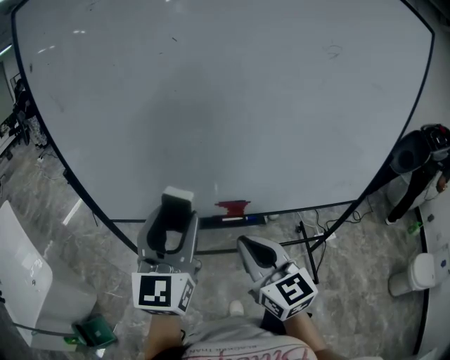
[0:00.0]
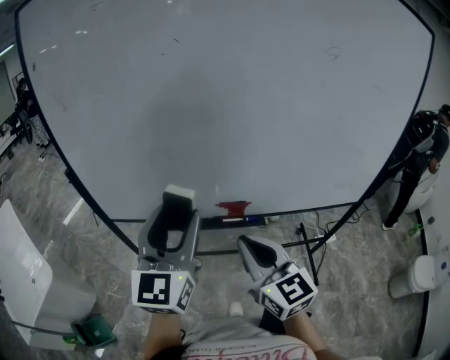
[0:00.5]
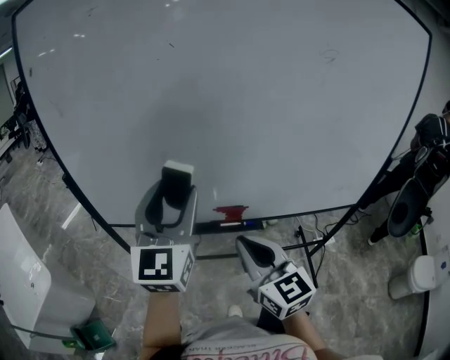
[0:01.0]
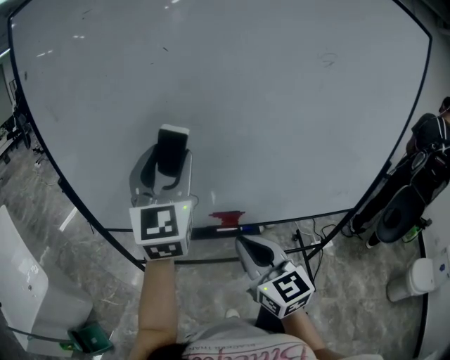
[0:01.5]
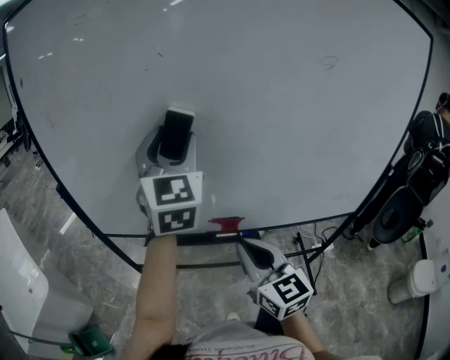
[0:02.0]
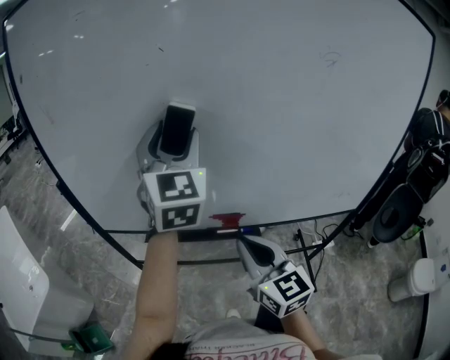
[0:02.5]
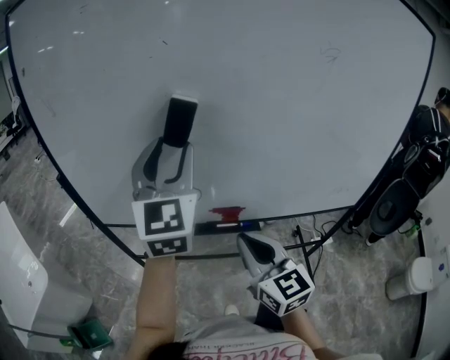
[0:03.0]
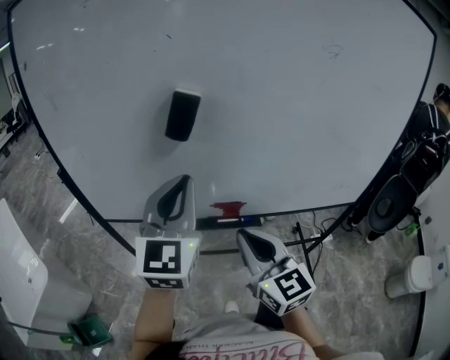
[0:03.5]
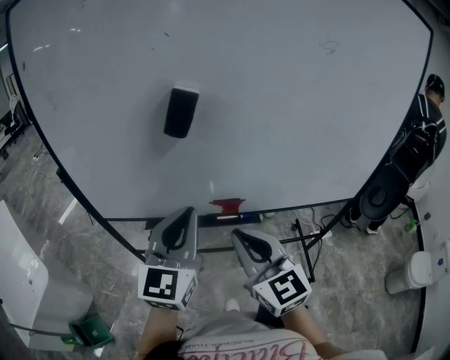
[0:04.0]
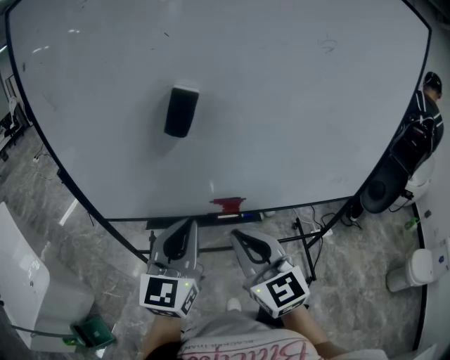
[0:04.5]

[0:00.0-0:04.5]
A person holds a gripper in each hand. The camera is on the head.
0:00.0 to 0:02.0: The left gripper is displaced forward and upward by about 20 cm.
0:02.0 to 0:04.5: The right gripper moves roughly 5 cm. The left gripper is displaced downward and backward by some 25 cm, swivels approximately 30 degrees, and closes.

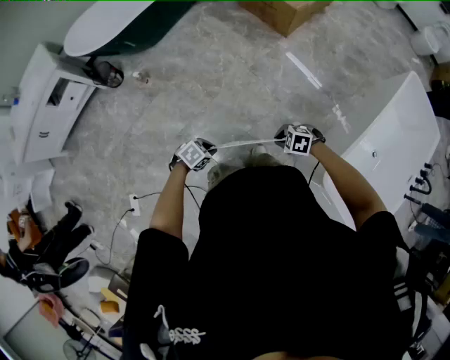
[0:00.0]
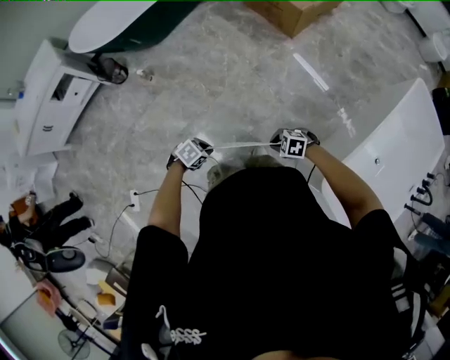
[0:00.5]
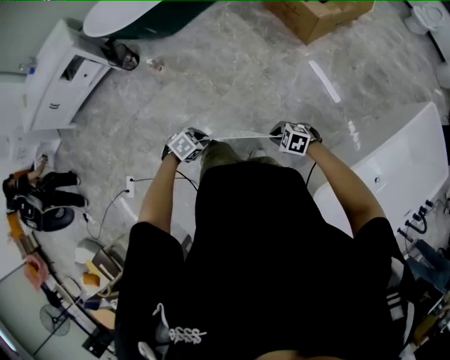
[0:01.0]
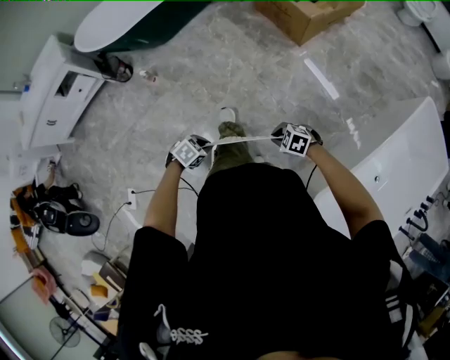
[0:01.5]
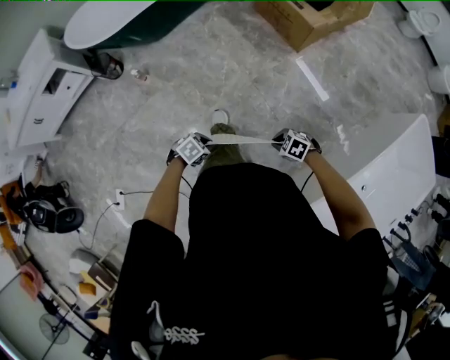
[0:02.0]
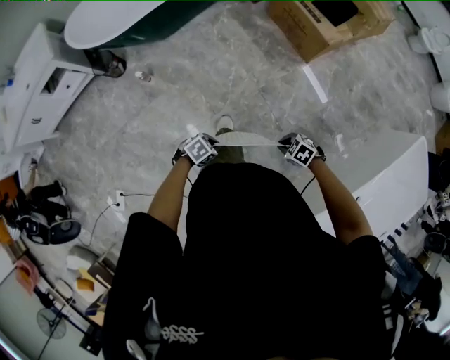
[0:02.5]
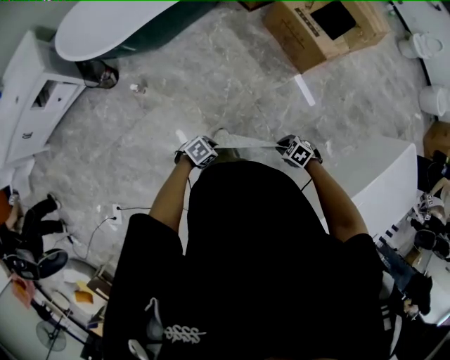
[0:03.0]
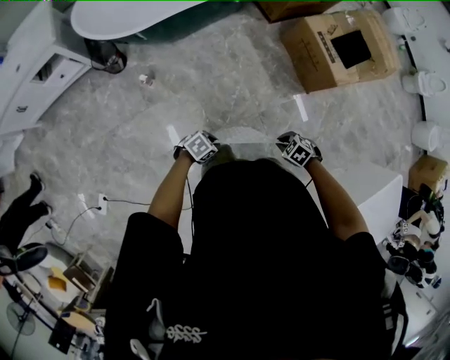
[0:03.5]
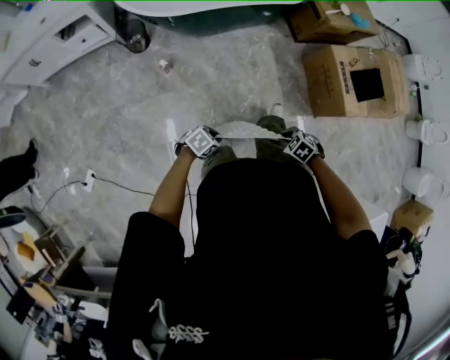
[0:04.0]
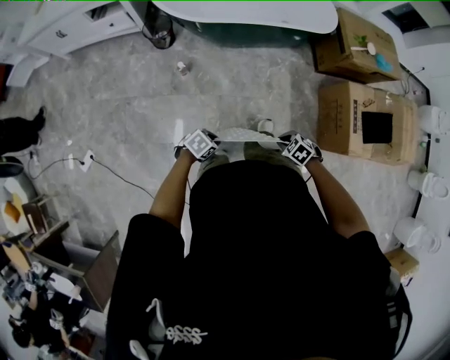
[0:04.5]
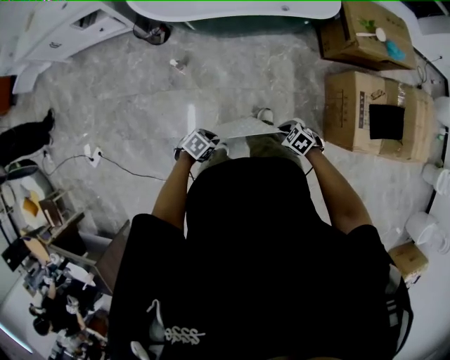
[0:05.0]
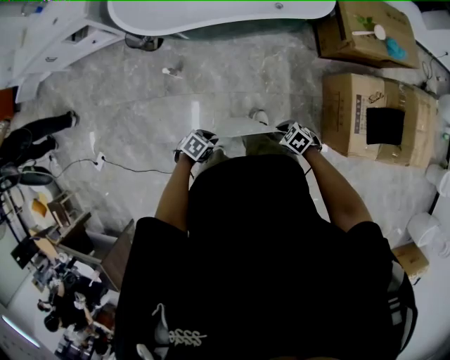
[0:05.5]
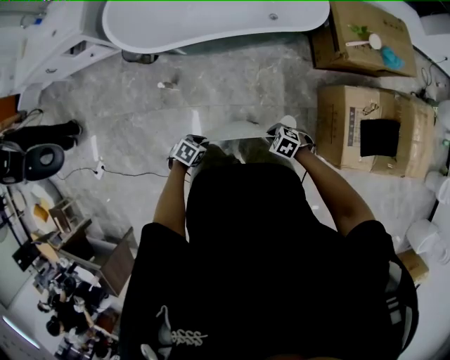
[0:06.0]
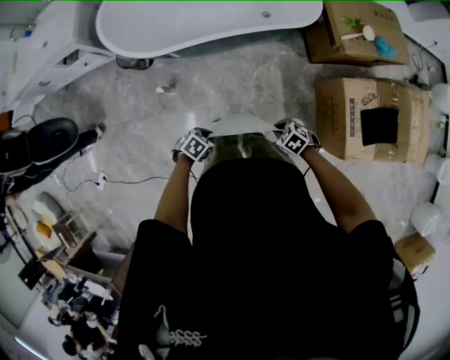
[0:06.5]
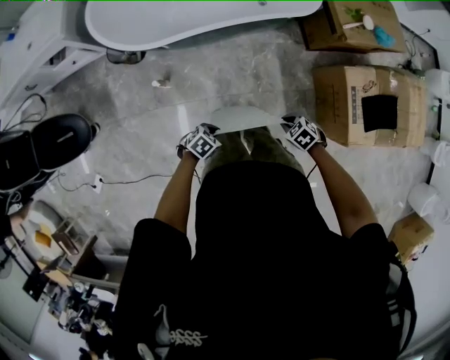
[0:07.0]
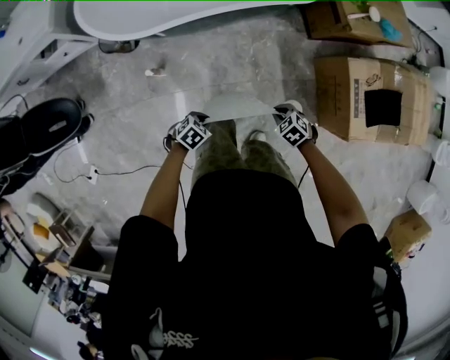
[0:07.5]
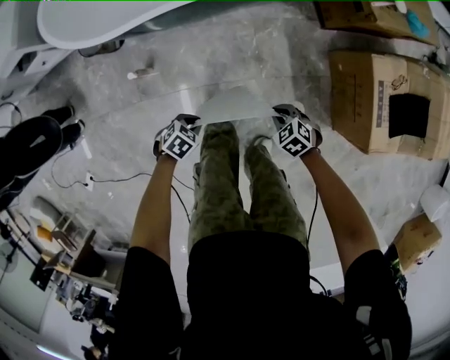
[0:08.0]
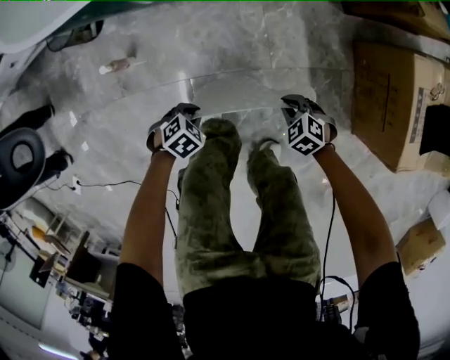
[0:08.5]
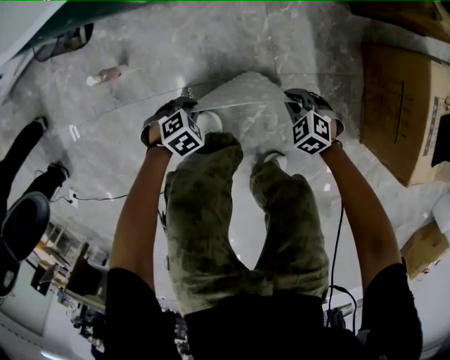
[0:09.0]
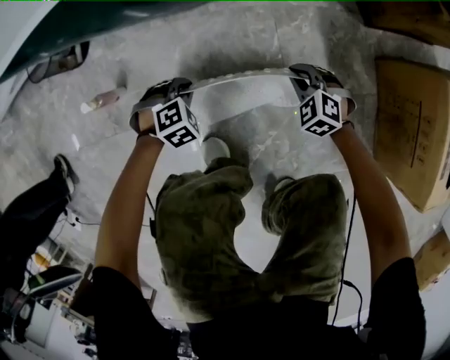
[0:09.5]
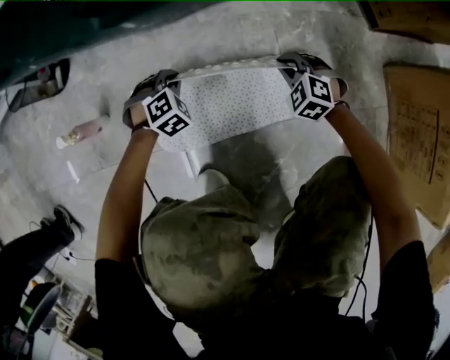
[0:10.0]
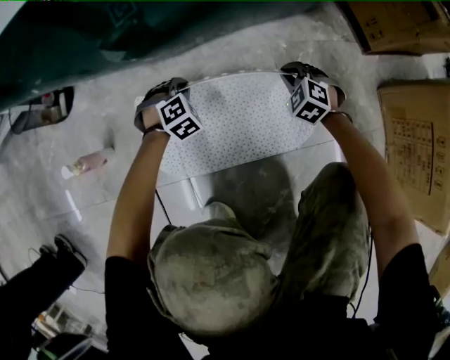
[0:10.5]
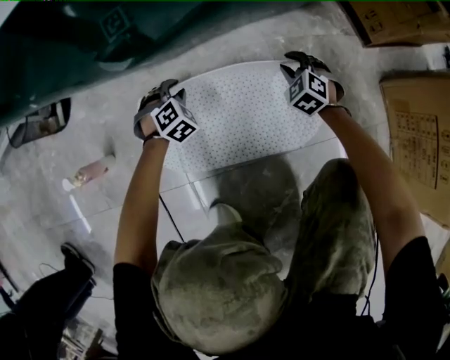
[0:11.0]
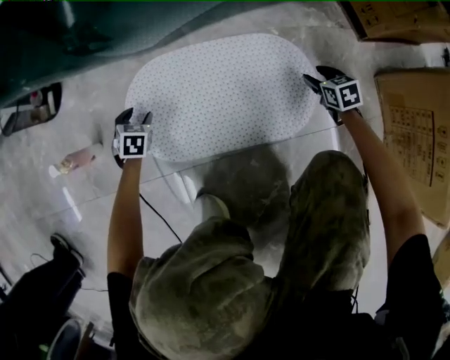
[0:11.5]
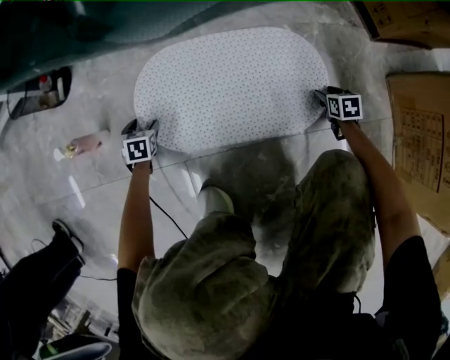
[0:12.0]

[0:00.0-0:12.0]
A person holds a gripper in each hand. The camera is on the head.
0:00.0 to 0:02.0: The right gripper ends up about 20 cm from where it was, while the left gripper ends up roughly 20 cm from where it was.
0:02.0 to 0:04.0: The left gripper ends up some 35 cm from where it was, and rotates roughly 30 degrees, while the right gripper moves roughly 40 cm.
0:04.0 to 0:06.0: The right gripper shifts by about 40 cm, and turns by approximately 20 degrees. Meanwhile the left gripper changes place by approximately 35 cm, and swivels roughly 30 degrees.
0:06.0 to 0:08.0: The grippers both shift downward by approximately 20 cm. The right gripper turns by roughly 20 degrees.
0:08.0 to 0:10.0: Both grippers travel together downward, about 50 cm. The right gripper changes its angle by roughly 30 degrees, while the left gripper turns by about 40 degrees.
0:10.0 to 0:12.0: The right gripper shifts some 20 cm to the right and downward, rolls clockwise, seen from behind, by about 70 degrees, and opens, while the left gripper is displaced to the left and downward by some 20 cm, twists about 60 degrees counterclockwise, seen from behind, and opens up.

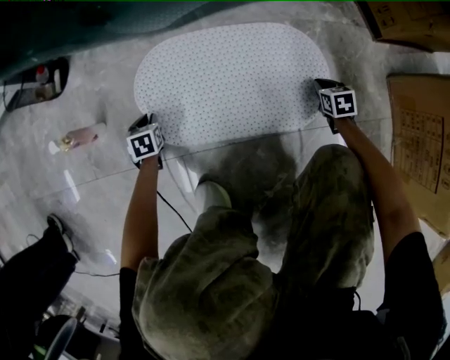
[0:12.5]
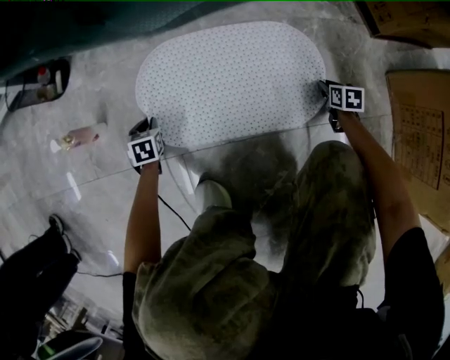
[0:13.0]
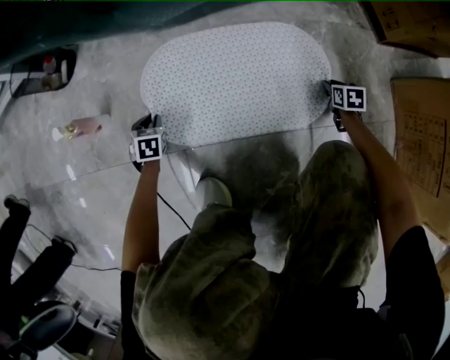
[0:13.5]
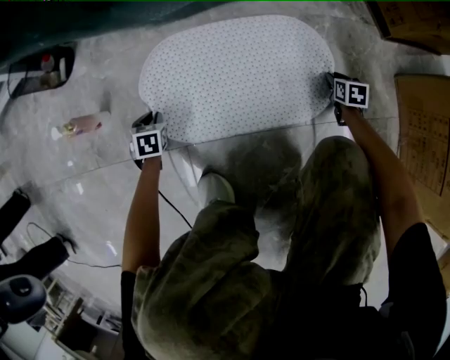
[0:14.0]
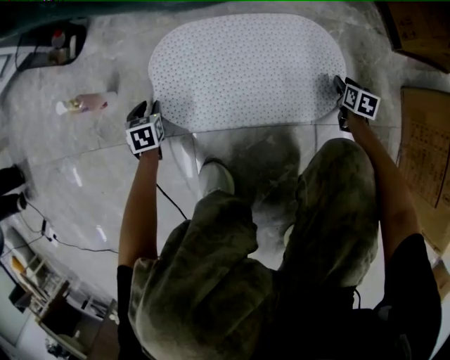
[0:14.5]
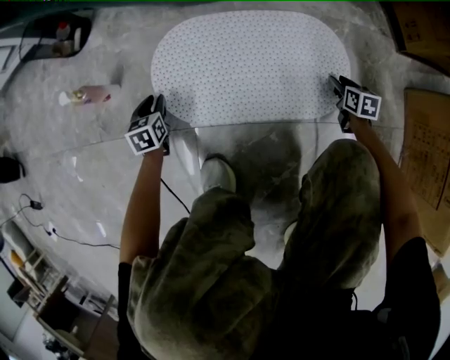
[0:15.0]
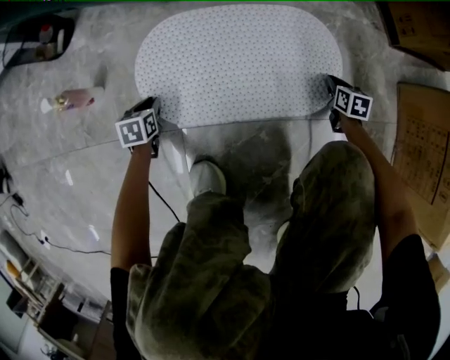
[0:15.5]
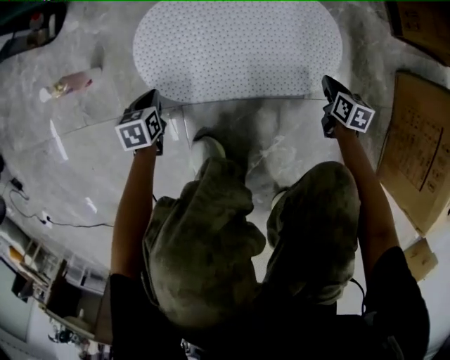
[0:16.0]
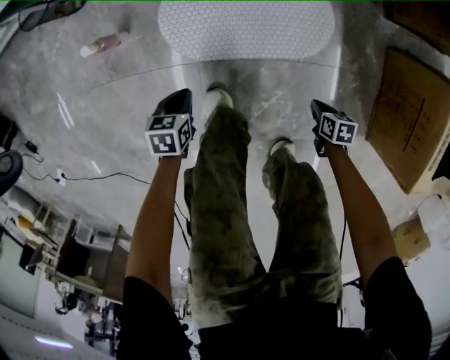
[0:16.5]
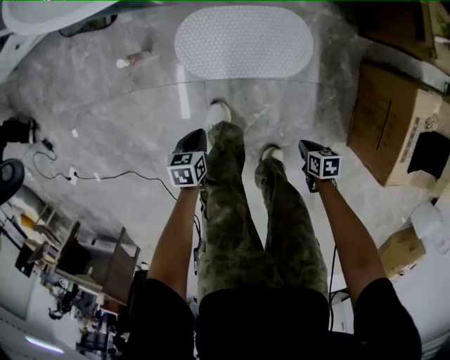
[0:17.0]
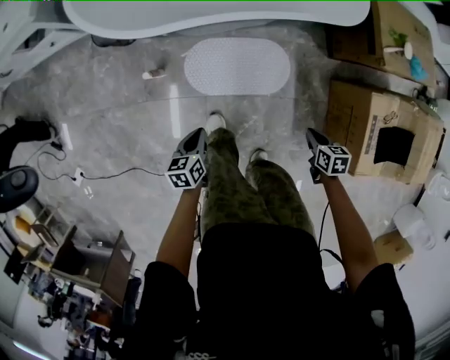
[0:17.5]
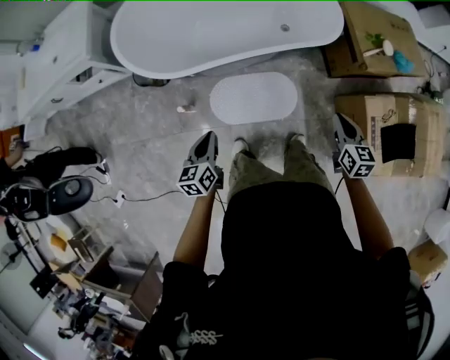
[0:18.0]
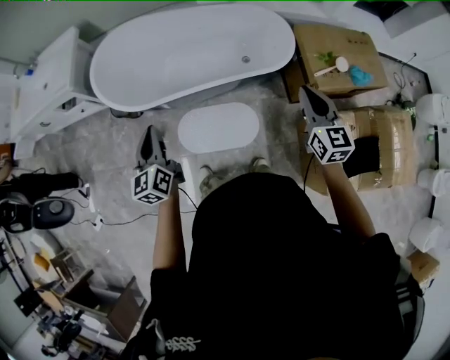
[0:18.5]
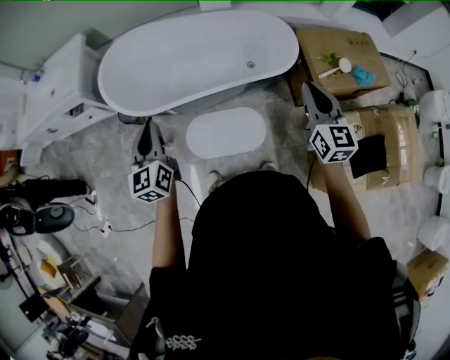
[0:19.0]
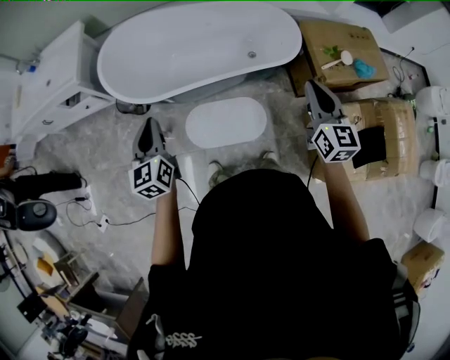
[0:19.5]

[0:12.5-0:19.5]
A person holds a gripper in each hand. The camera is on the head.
0:12.5 to 0:14.5: The left gripper changes place by some 5 cm, while the right gripper opens its fingers.
0:14.5 to 0:16.0: The right gripper travels backward and to the left by approximately 10 cm, and closes its fingers. The left gripper heads to the right, covering some 5 cm, and closes its fingers.
0:16.0 to 0:17.5: The grippers both shift upward by approximately 70 cm. The left gripper rotates roughly 20 degrees.
0:17.5 to 0:19.5: Both grippers move upward, about 50 cm. The left gripper points its fingers roughly 30 degrees further upward; the right gripper tips its fingers upward by about 50 degrees.

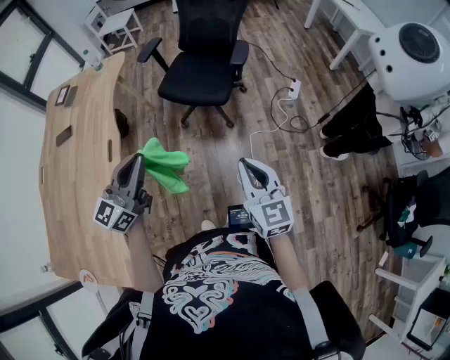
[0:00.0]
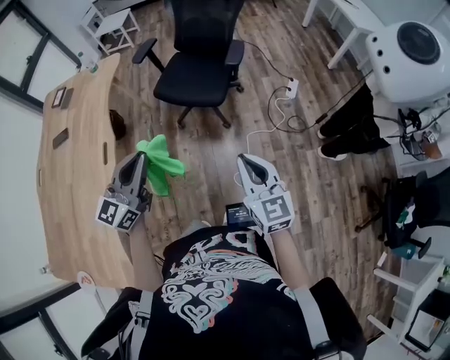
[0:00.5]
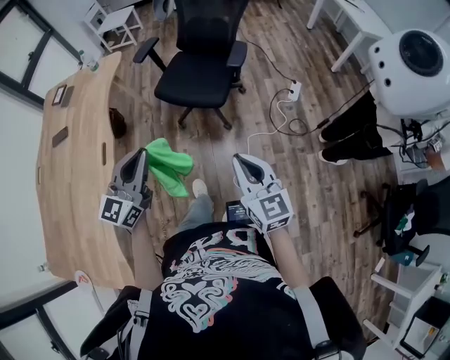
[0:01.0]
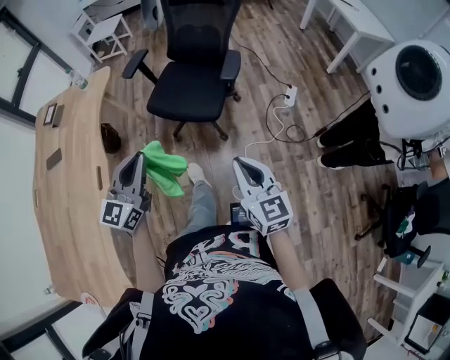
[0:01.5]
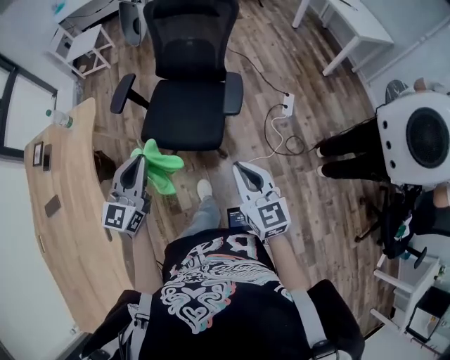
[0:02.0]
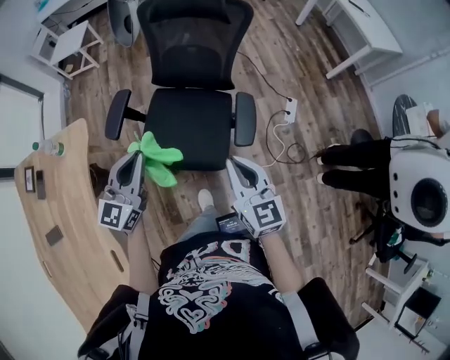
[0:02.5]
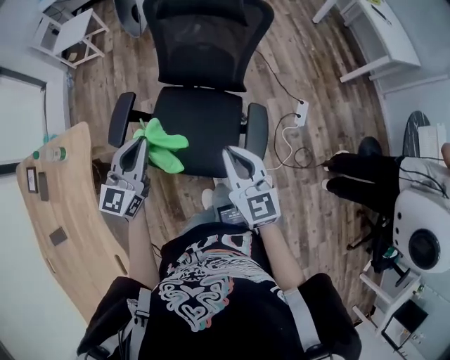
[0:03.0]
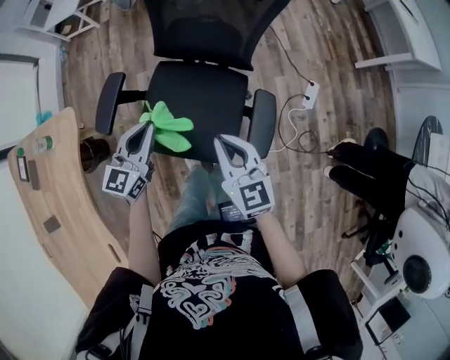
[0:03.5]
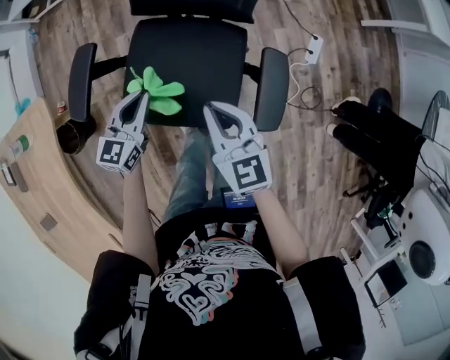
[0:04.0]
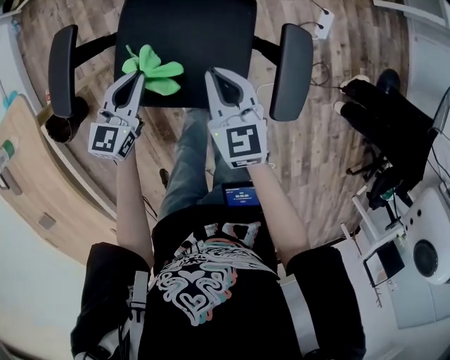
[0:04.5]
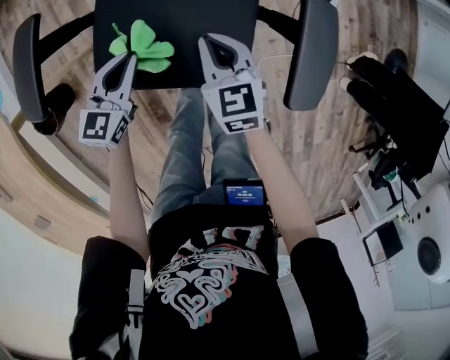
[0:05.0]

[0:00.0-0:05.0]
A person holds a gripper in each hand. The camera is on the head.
0:00.0 to 0:02.5: Both grippers are carried forward, about 60 cm.
0:02.5 to 0:05.0: The left gripper goes approximately 40 cm downward, and swivels some 30 degrees. Meanwhile the right gripper goes approximately 50 cm downward and forward, and swivels about 30 degrees.
